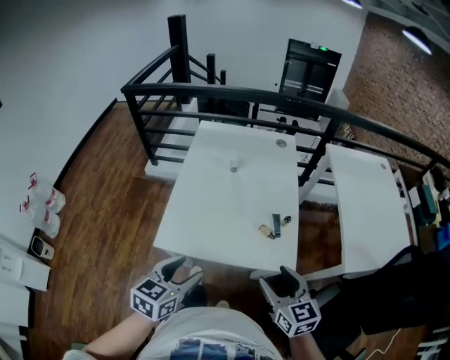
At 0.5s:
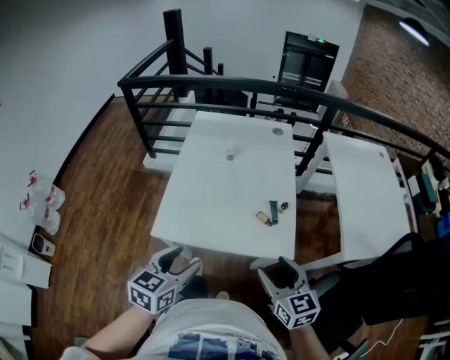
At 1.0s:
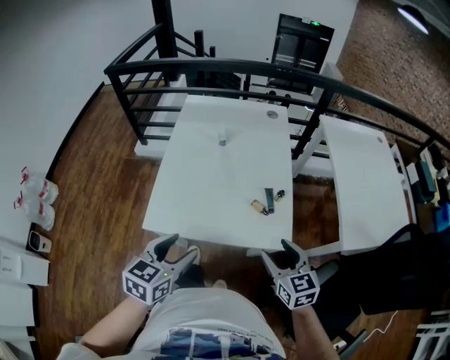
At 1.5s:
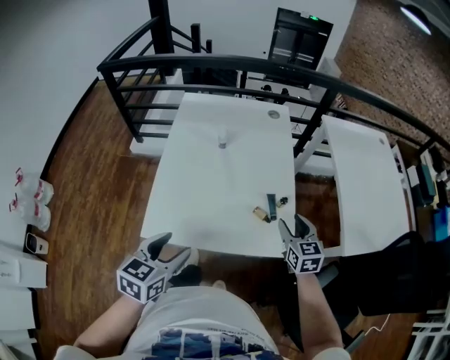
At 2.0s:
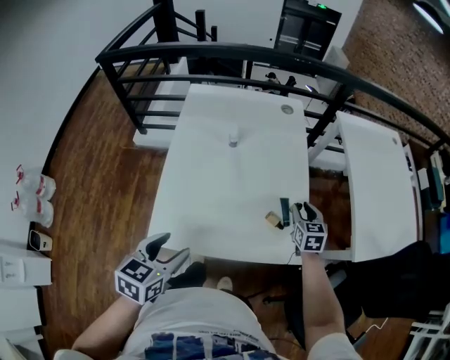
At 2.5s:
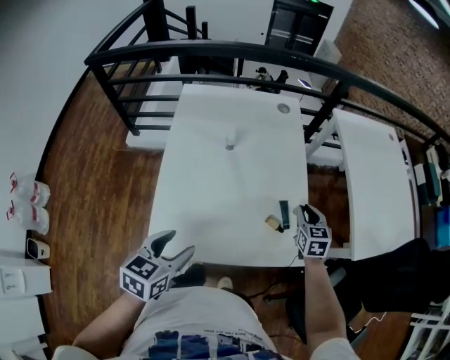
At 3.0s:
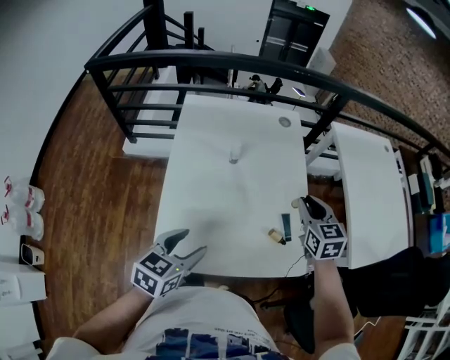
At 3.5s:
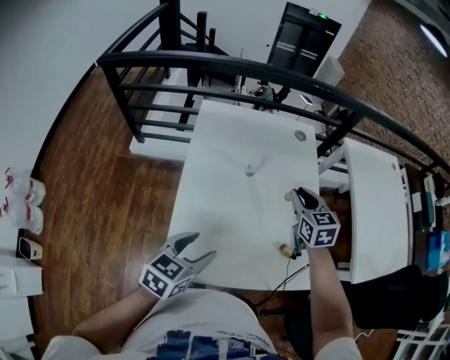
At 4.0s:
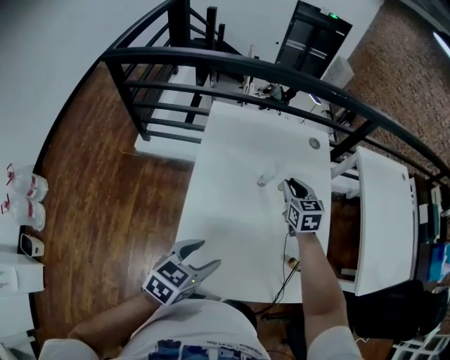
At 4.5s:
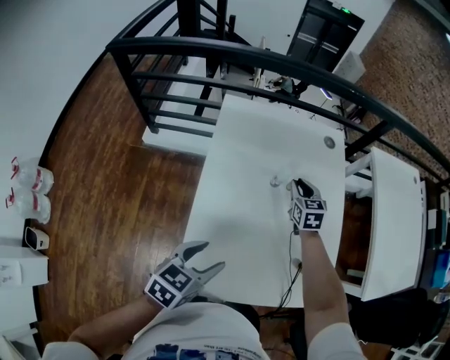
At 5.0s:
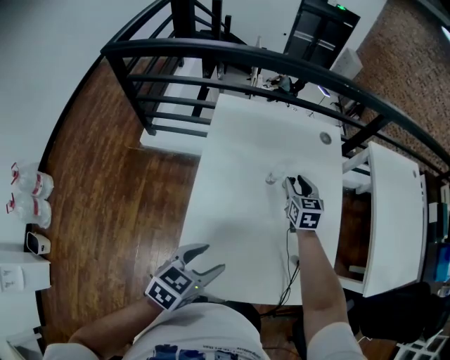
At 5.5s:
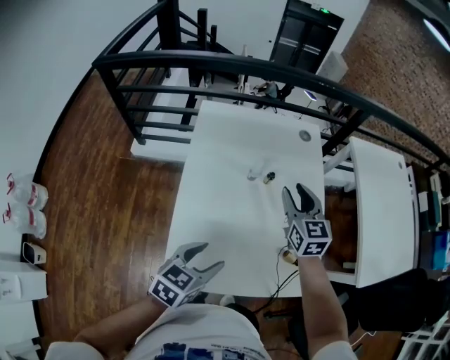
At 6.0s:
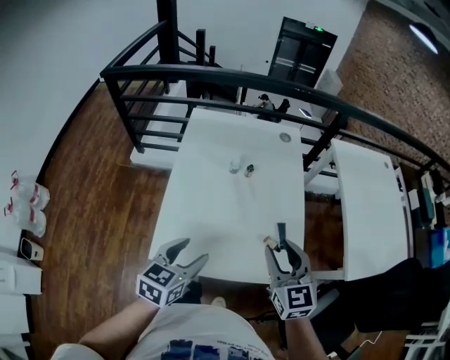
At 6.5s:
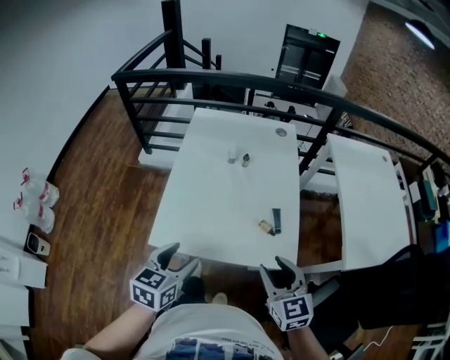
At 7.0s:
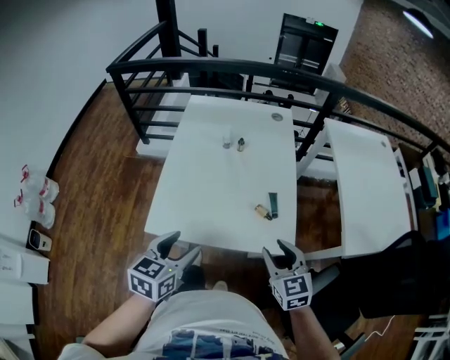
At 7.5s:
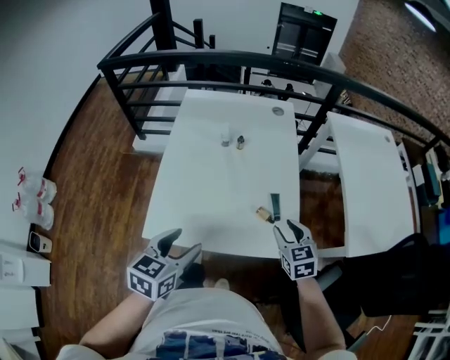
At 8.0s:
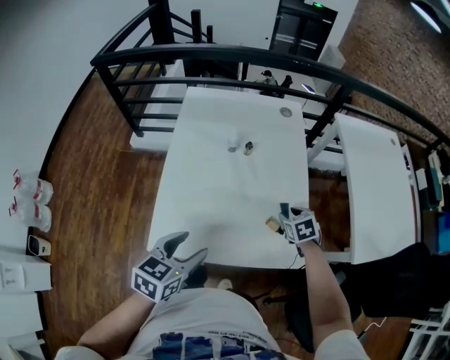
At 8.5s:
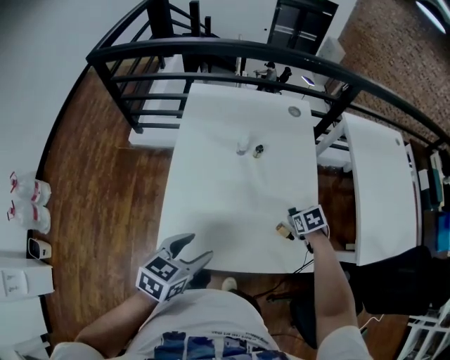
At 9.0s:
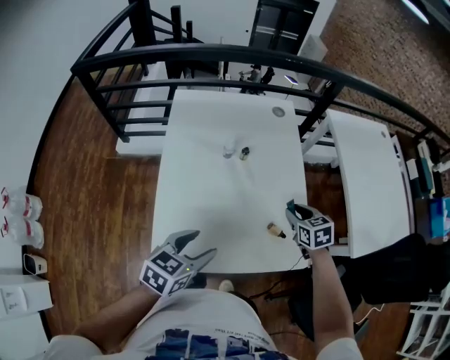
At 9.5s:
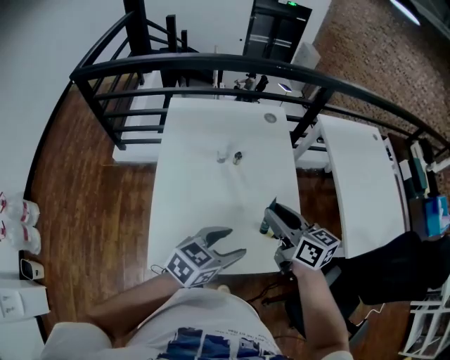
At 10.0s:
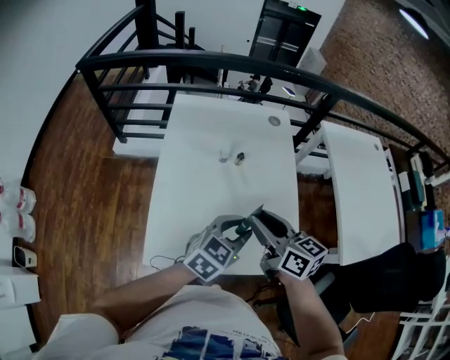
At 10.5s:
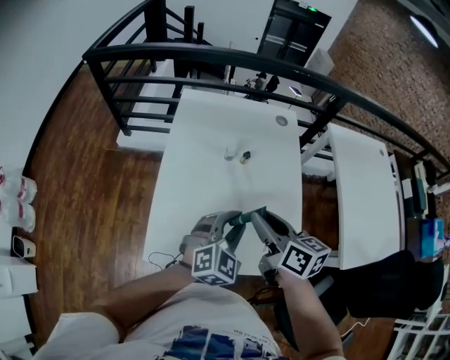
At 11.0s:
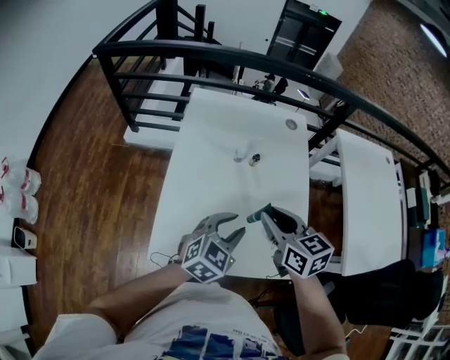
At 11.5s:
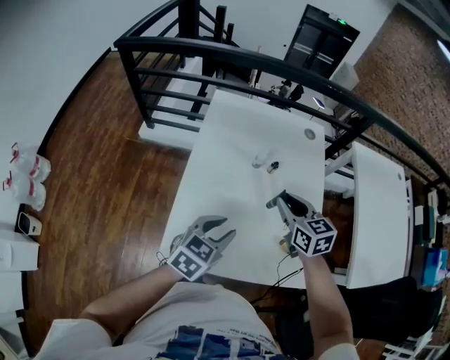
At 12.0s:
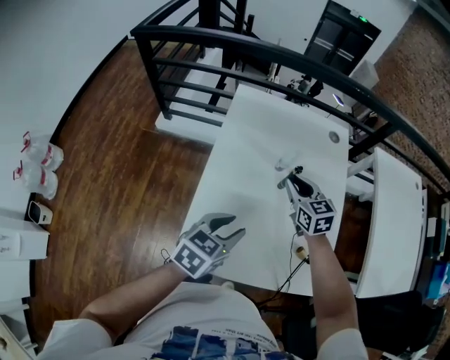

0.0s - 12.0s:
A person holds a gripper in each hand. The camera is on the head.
0.0s - 2.0s: The left gripper moves forward, to the left and downward, approximately 15 cm; the right gripper moves forward and downward, some 35 cm, swivels some 30 degrees, and closes.
2.0s - 4.0s: The right gripper travels to the left and forward by roughly 30 cm, while the left gripper goes approximately 15 cm forward and to the left.
4.0s - 6.0s: The right gripper moves backward, to the right and upward, approximately 35 cm, while the left gripper travels to the right and backward by approximately 10 cm.
6.0s - 8.0s: The right gripper is displaced downward, to the right and forward by approximately 30 cm, and tilts its fingers roughly 40 degrees downward, while the left gripper travels backward and back again, approximately 10 cm each way.
8.0s - 10.0s: The right gripper is displaced upward by approximately 25 cm, and points its fingers roughly 50 degrees further upward. The left gripper moves approximately 15 cm, turns by approximately 30 degrees, and closes.
10.0s - 12.0s: The right gripper is displaced forward, downward and to the left by approximately 25 cm, and turns by about 30 degrees. Meanwhile the left gripper is displaced to the left by about 20 cm, and rotates roughly 20 degrees.

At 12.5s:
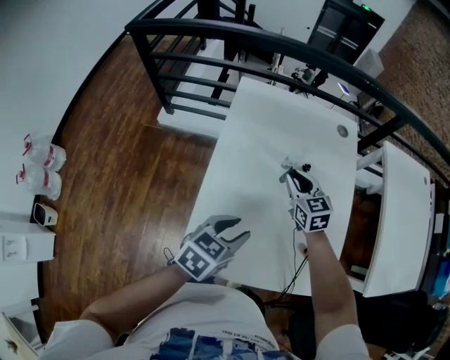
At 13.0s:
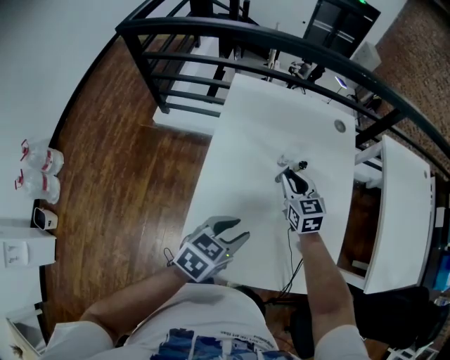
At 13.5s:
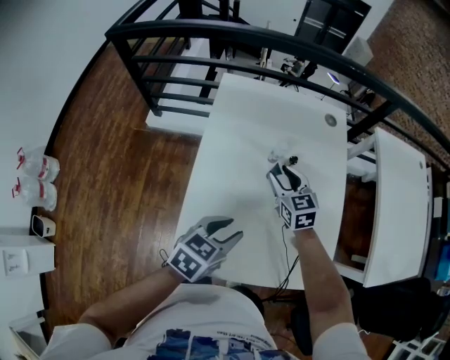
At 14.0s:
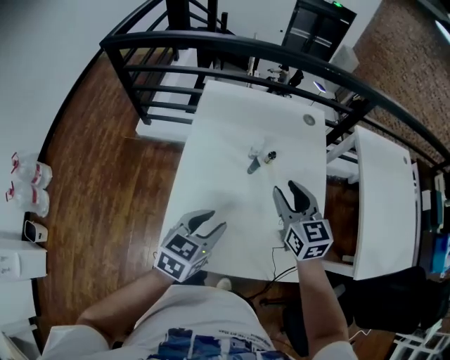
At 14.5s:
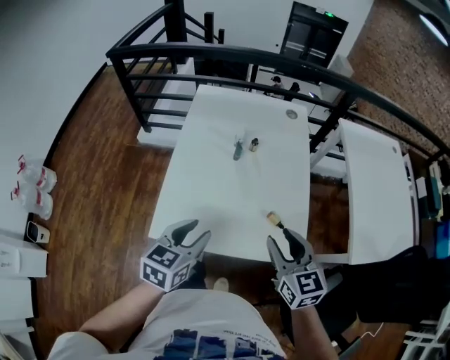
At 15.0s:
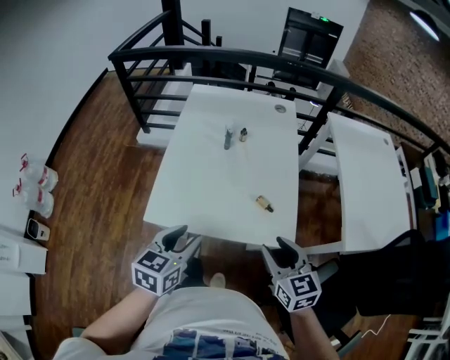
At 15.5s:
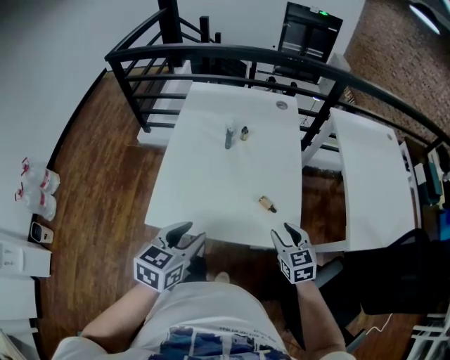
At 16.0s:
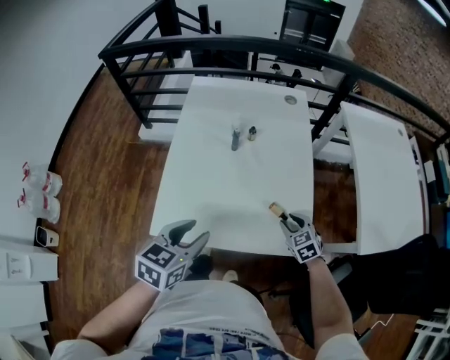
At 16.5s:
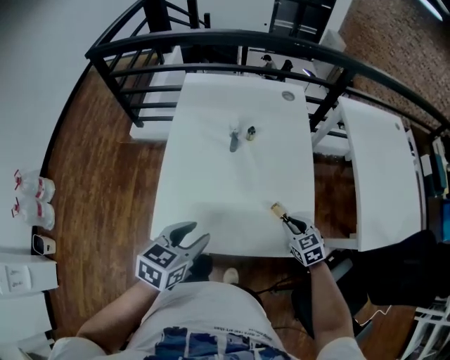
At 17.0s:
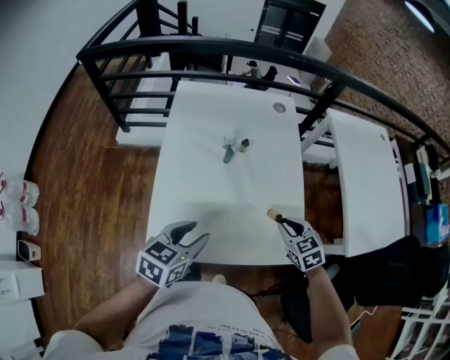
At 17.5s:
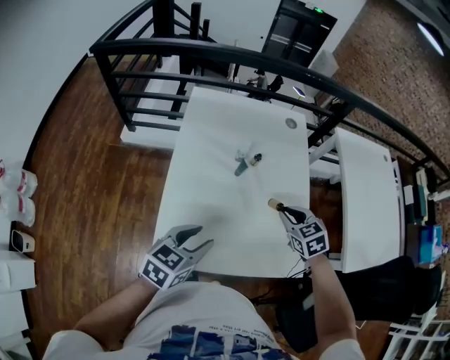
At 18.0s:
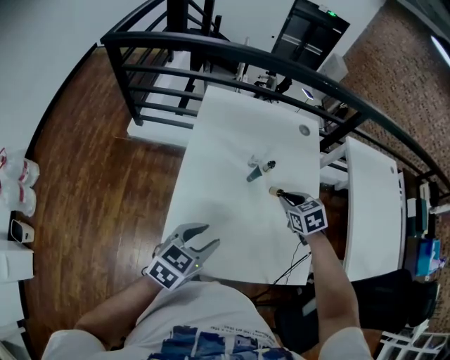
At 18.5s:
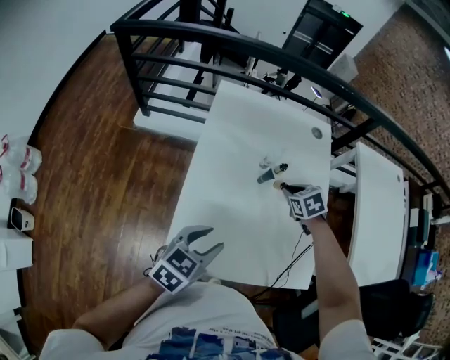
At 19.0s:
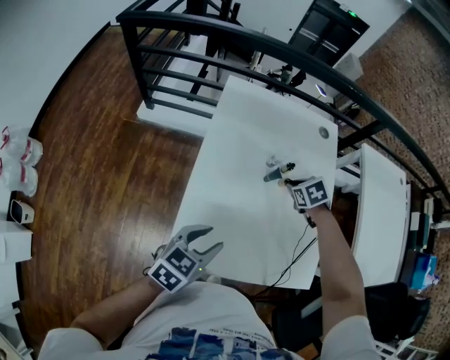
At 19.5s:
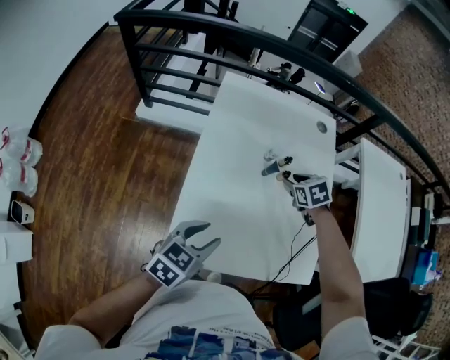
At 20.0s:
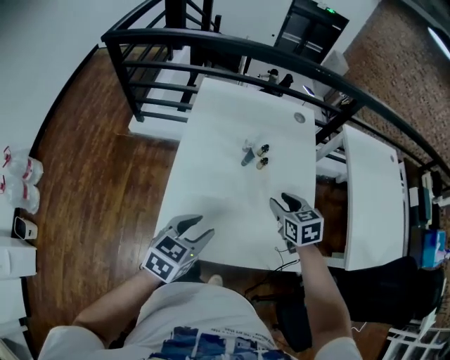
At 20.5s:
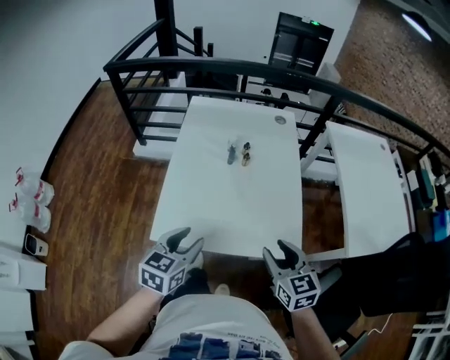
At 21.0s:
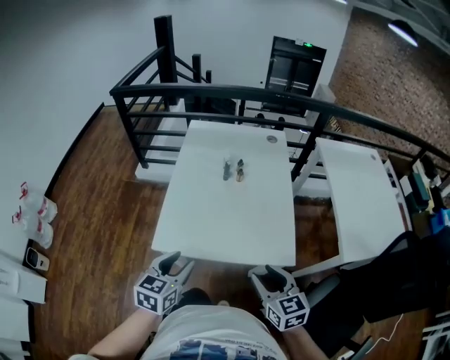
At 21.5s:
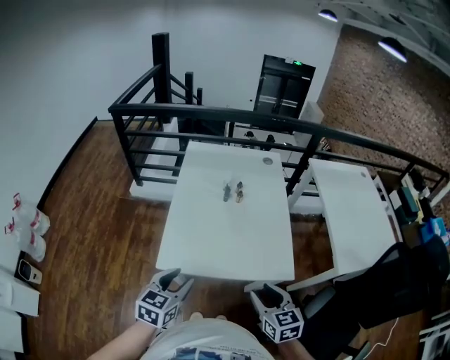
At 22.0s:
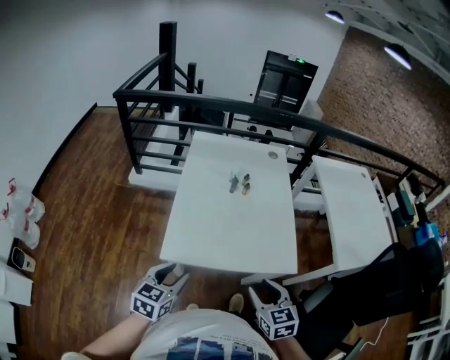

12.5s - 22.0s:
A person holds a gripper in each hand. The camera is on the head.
12.5s - 14.5s: The left gripper heads backward, to the right and upward, covering approximately 20 cm, while the right gripper travels backward, to the right and upward by approximately 40 cm, and opens up.
14.5s - 16.5s: The left gripper reaches about 10 cm backward, then returns. The right gripper heads downward, covering some 20 cm, changes its angle by roughly 30 degrees, and closes.
16.5s - 18.0s: The right gripper is displaced forward, to the left and upward by approximately 25 cm; the left gripper is displaced forward and to the left by roughly 10 cm.
18.0s - 20.0s: The right gripper heads backward, covering some 10 cm, and opens up.
20.0s - 22.0s: The right gripper is displaced backward by approximately 35 cm, while the left gripper travels backward by some 20 cm.

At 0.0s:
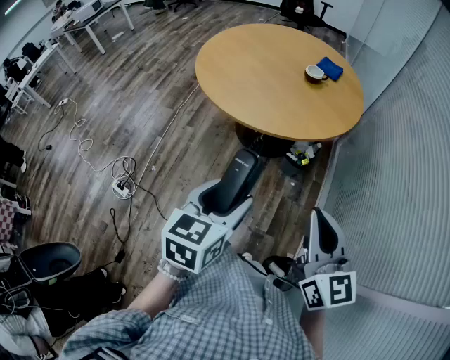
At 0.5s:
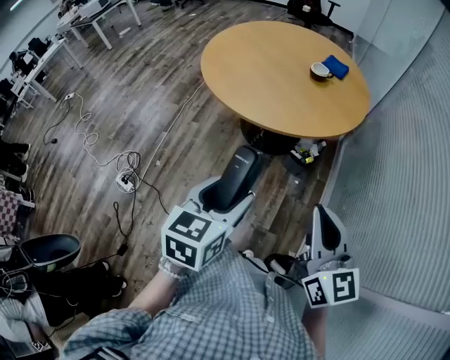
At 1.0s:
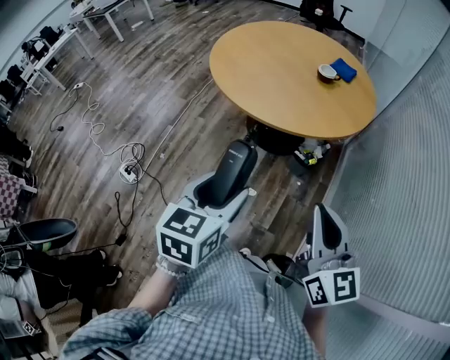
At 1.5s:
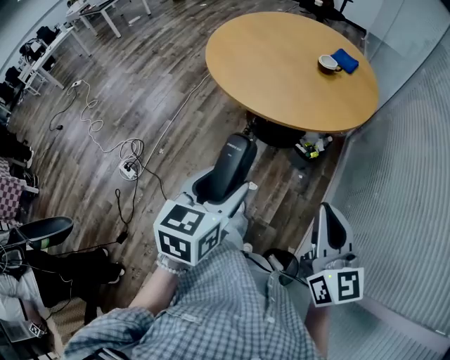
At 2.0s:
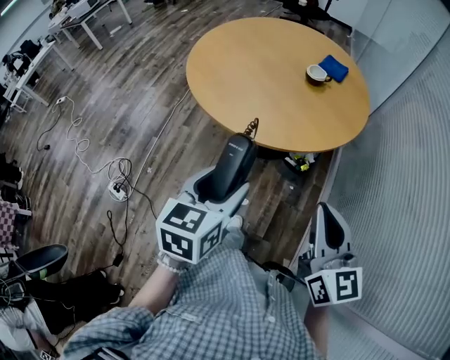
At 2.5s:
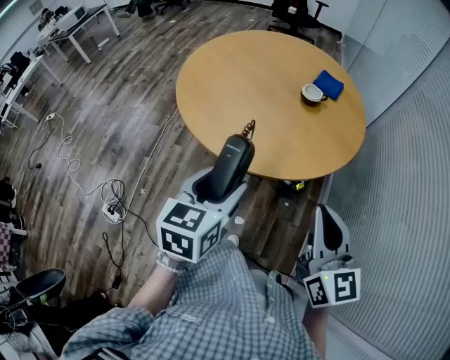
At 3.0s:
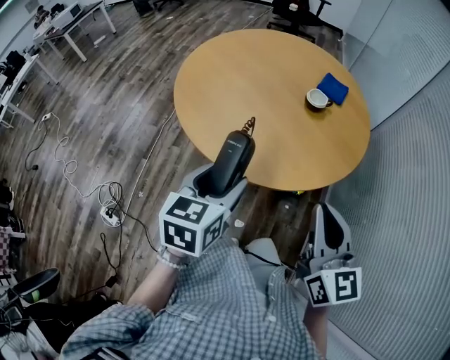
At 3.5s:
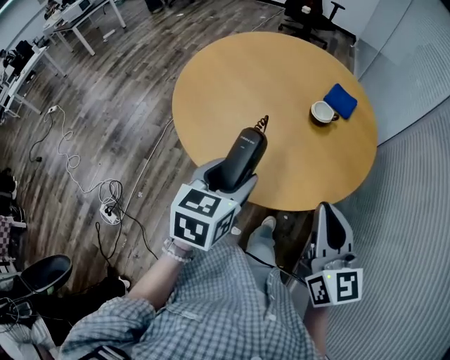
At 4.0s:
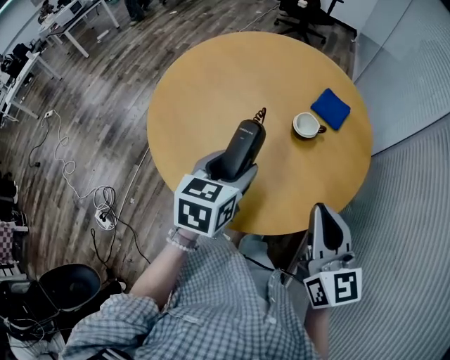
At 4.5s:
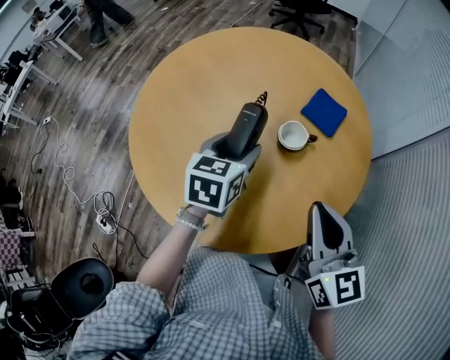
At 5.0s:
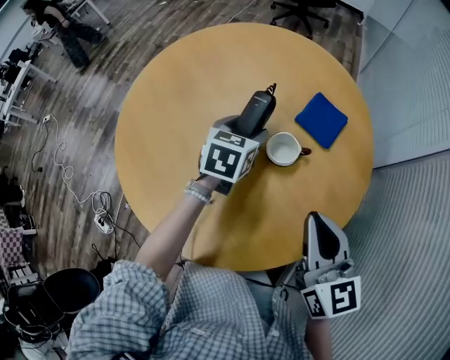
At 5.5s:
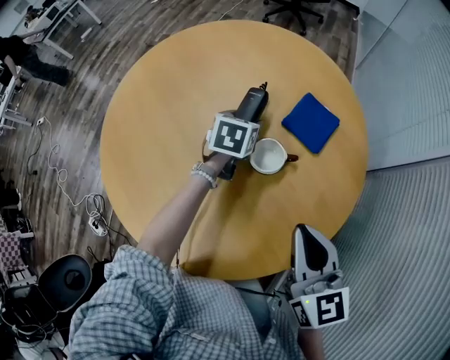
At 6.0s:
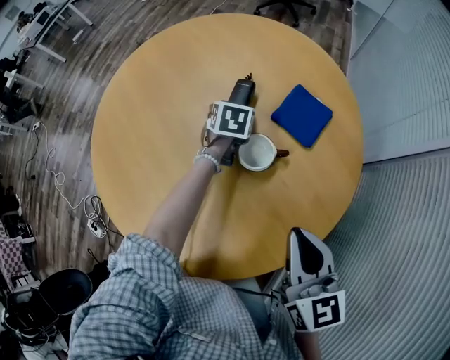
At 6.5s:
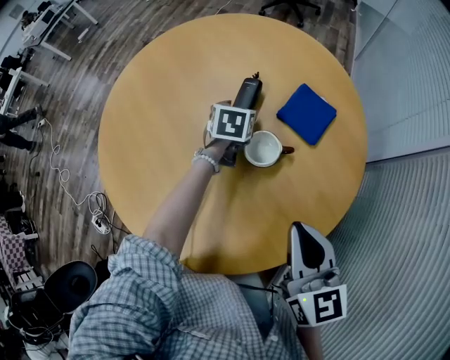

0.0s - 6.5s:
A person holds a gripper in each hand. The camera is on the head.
0.0s - 2.0s: Both grippers move forward, about 10 cm.
2.0s - 4.5s: The pair of grippers is taken forward, roughly 50 cm.
4.5s - 6.5s: The right gripper heads to the right, downward and forward, covering about 10 cm, while the left gripper is displaced forward, downward and to the right by approximately 30 cm.
